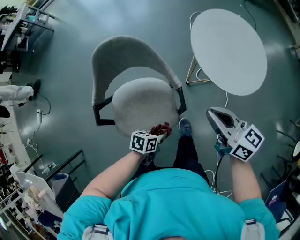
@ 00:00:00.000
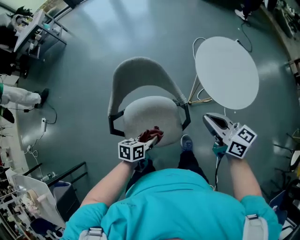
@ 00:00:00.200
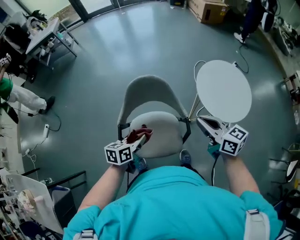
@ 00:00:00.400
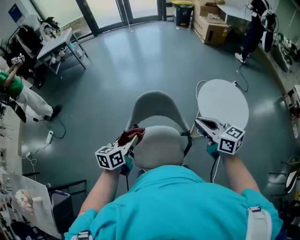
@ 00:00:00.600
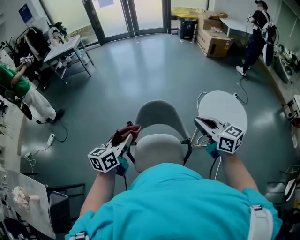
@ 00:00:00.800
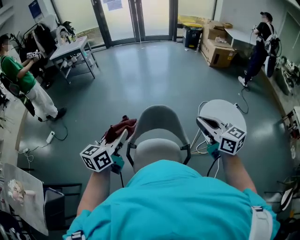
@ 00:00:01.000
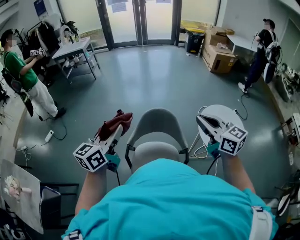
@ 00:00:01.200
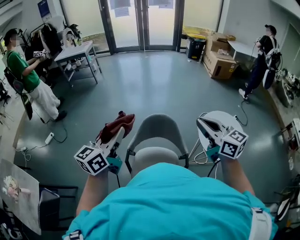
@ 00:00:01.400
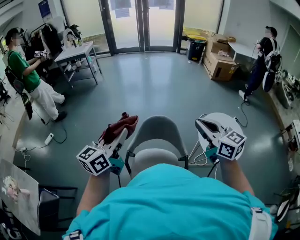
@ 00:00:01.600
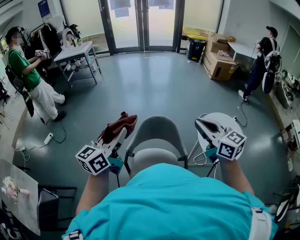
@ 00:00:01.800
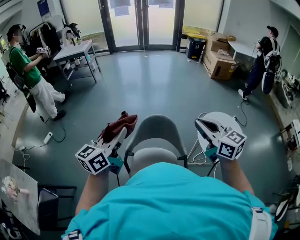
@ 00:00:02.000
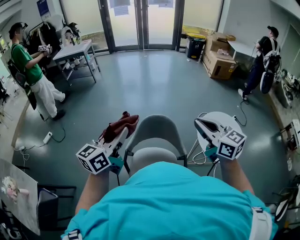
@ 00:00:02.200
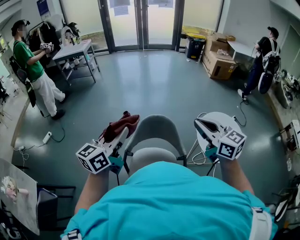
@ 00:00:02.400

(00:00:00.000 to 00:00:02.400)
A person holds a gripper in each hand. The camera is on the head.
00:00:00.000 - 00:00:01.200: The left gripper goes about 60 cm upward, and angles its fingers upward, by approximately 40 degrees; the right gripper is displaced upward by some 30 cm, and turns by roughly 30 degrees.
00:00:01.200 - 00:00:02.400: The grippers stay close to where they were, moving slightly.

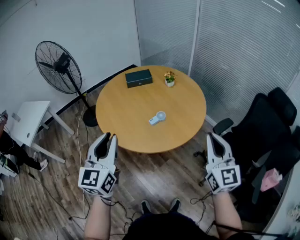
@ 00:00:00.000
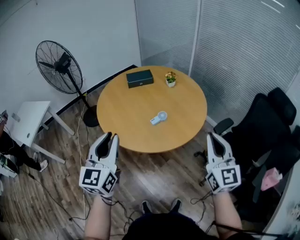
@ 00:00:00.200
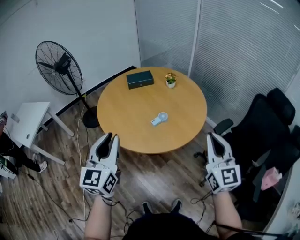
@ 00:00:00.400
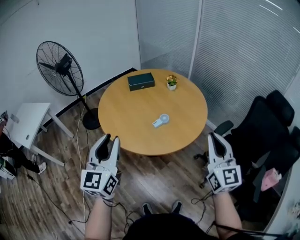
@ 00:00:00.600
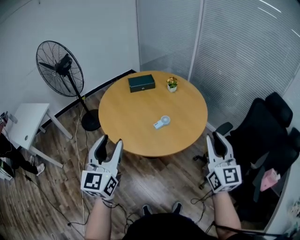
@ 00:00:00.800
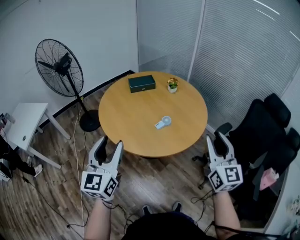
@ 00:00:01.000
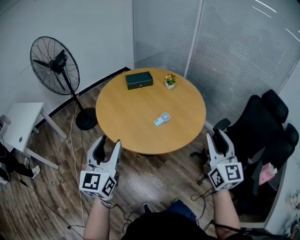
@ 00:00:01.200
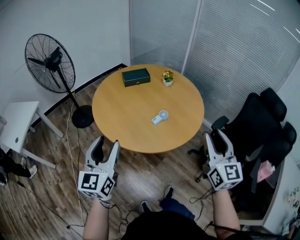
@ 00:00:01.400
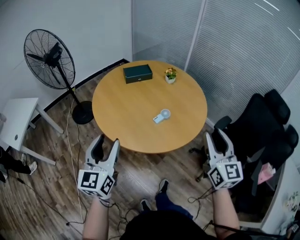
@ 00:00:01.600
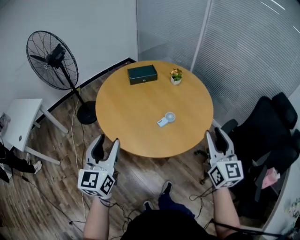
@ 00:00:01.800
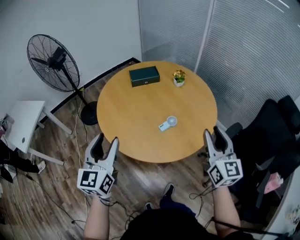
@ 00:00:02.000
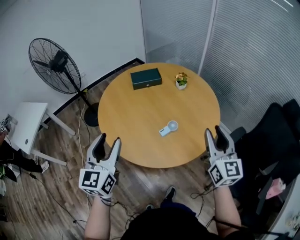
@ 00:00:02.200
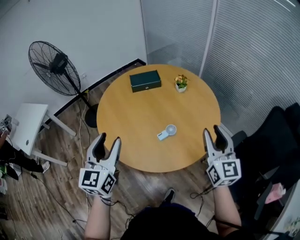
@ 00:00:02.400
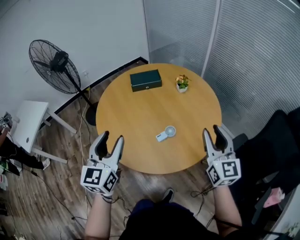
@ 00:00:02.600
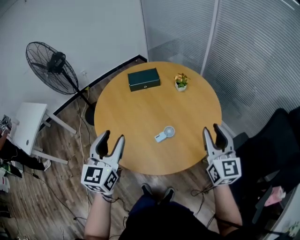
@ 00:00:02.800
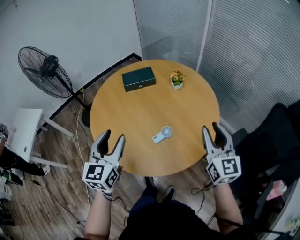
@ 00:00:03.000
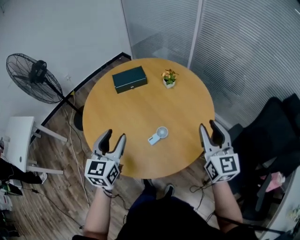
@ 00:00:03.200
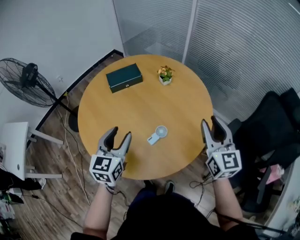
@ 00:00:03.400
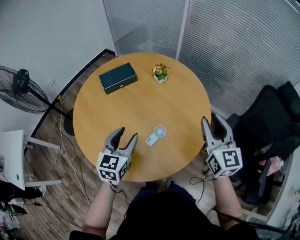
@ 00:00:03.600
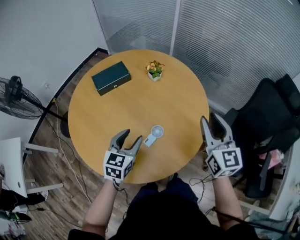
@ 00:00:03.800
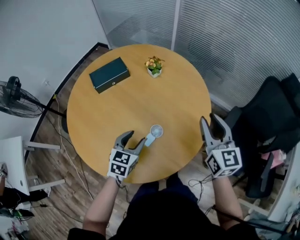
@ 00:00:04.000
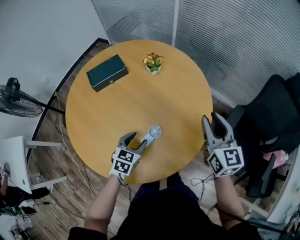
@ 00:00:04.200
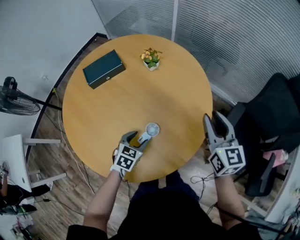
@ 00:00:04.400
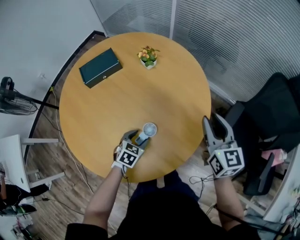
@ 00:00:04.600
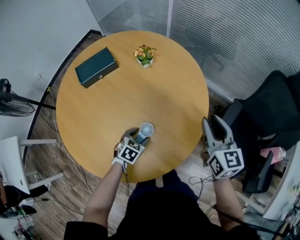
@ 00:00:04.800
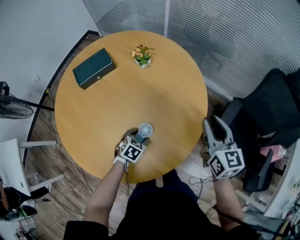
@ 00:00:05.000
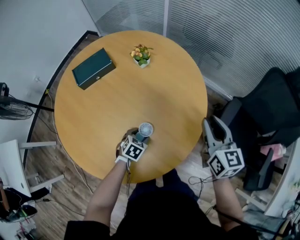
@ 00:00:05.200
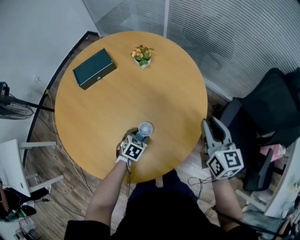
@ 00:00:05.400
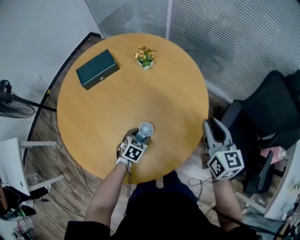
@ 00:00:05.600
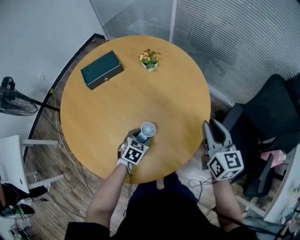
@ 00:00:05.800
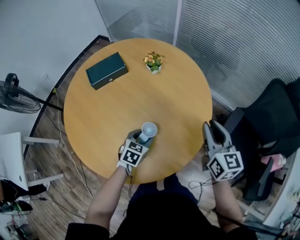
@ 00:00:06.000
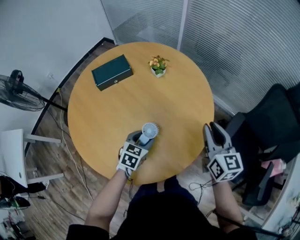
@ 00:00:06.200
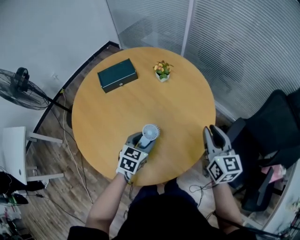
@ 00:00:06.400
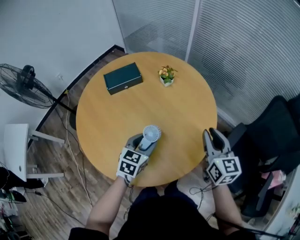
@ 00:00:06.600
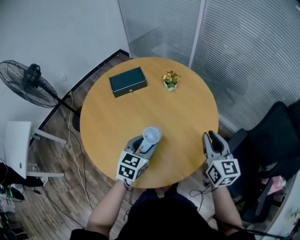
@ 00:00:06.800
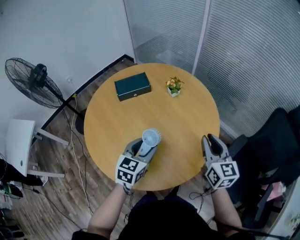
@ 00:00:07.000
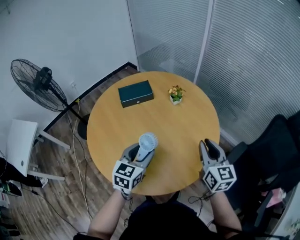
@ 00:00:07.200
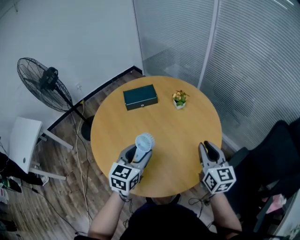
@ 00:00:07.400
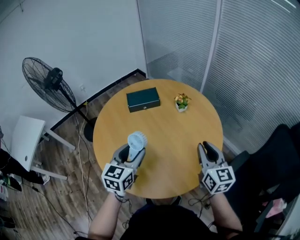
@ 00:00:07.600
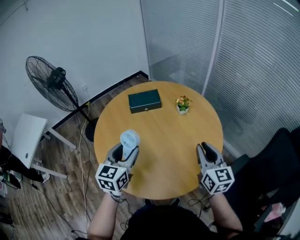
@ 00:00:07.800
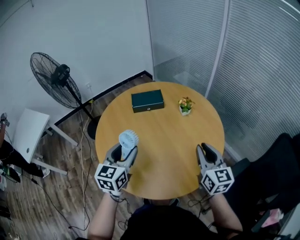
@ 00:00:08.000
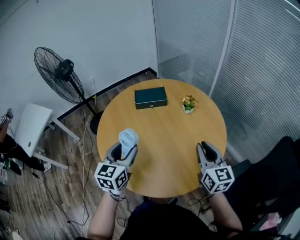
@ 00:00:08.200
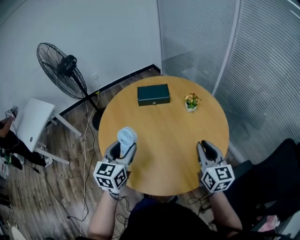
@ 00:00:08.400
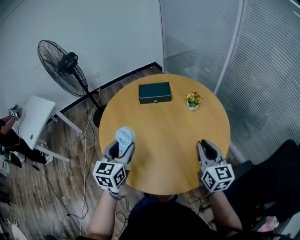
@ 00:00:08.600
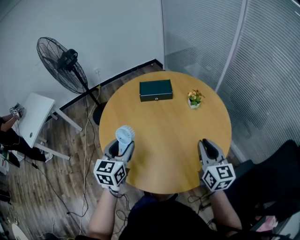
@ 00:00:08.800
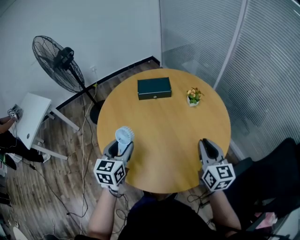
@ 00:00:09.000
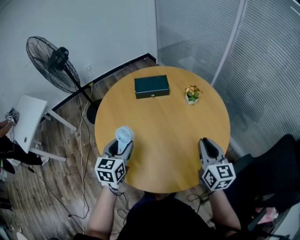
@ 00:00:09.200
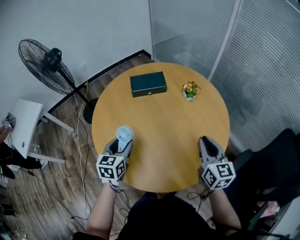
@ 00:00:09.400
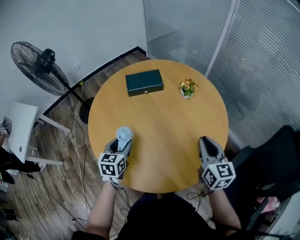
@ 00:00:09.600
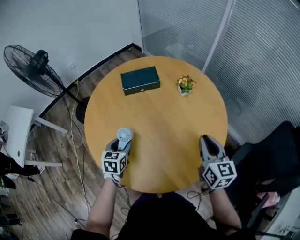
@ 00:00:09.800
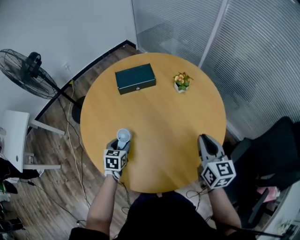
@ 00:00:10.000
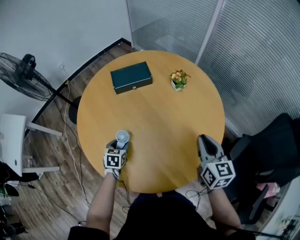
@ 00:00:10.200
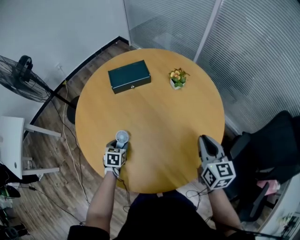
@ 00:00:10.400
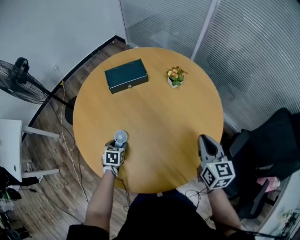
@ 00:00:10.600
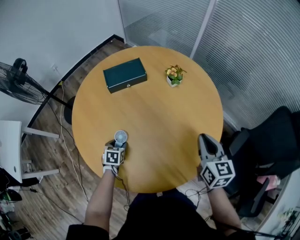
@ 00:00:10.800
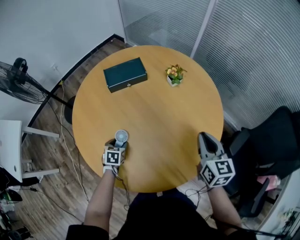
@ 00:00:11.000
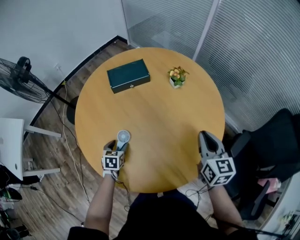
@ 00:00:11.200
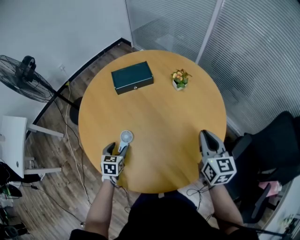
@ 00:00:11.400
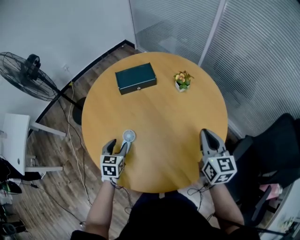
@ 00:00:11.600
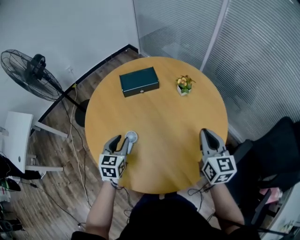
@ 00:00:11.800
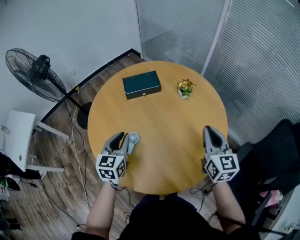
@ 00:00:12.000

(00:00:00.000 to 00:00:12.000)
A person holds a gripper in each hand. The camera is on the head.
00:00:00.000 - 00:00:01.600: The right gripper travels to the left by roughly 10 cm, and opens up, while the left gripper heads to the left and downward, covering roughly 15 cm, and opens up.
00:00:01.600 - 00:00:03.000: The left gripper shifts approximately 25 cm forward and to the right. The right gripper moves forward, about 25 cm.
00:00:03.000 - 00:00:04.400: The left gripper travels downward by approximately 30 cm, and tilts its fingers about 40 degrees downward, while the right gripper ends up some 15 cm from where it was.
00:00:04.400 - 00:00:06.000: The left gripper travels downward and back again, roughly 10 cm each way.
00:00:06.000 - 00:00:07.600: The left gripper shifts some 30 cm upward and to the left, and tilts its fingers roughly 30 degrees upward. Meanwhile the right gripper goes about 10 cm to the left and upward.
00:00:07.600 - 00:00:09.000: The left gripper moves to the left, about 10 cm. Meanwhile the right gripper ends up approximately 5 cm from where it was.
00:00:09.000 - 00:00:10.400: The left gripper shifts roughly 30 cm downward, and points its fingers roughly 30 degrees further downward. Meanwhile the right gripper travels downward by roughly 5 cm.
00:00:10.400 - 00:00:12.000: The right gripper travels upward by some 10 cm; the left gripper travels upward by roughly 25 cm, points its fingers approximately 30 degrees further upward, and closes.

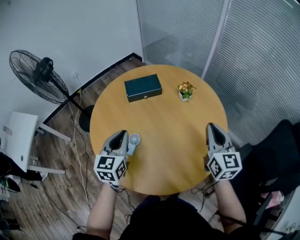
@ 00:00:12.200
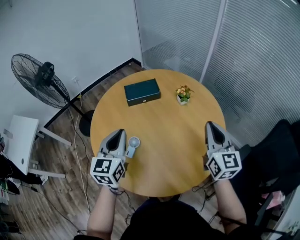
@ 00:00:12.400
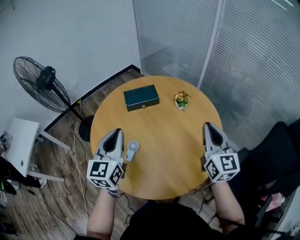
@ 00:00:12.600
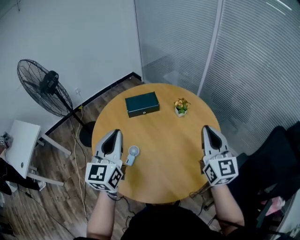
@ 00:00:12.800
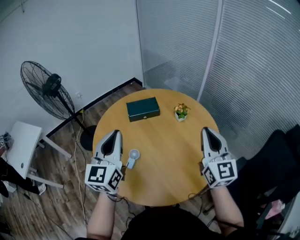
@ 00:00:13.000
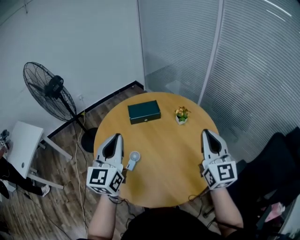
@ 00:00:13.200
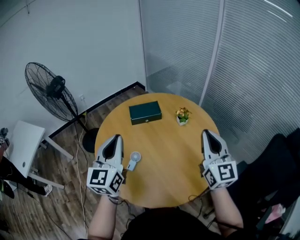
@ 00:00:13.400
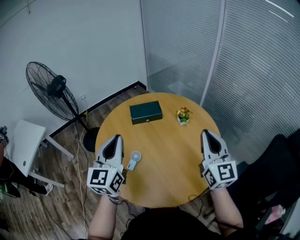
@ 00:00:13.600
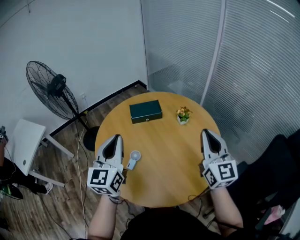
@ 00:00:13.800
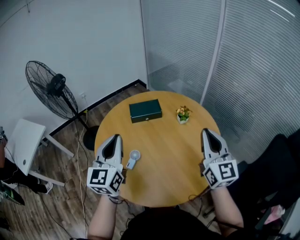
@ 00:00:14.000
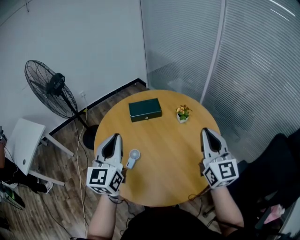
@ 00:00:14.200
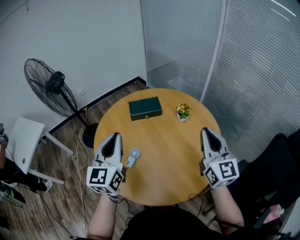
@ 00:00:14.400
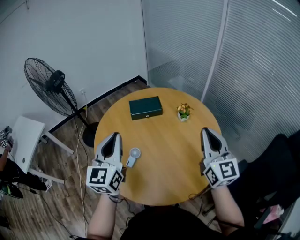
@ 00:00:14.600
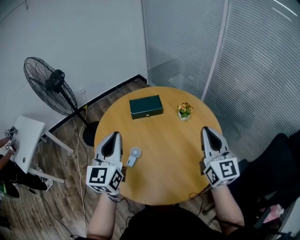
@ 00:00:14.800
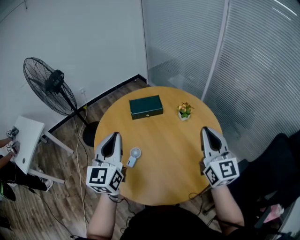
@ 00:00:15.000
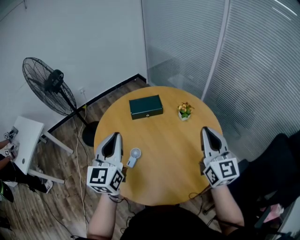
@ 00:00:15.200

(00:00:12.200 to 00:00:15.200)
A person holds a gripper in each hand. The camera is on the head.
00:00:12.200 - 00:00:13.800: The two grippers go roughly 15 cm upward. The left gripper swivels about 20 degrees.
00:00:13.800 - 00:00:15.200: There are only small adjustments of the grippers.

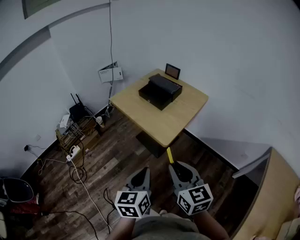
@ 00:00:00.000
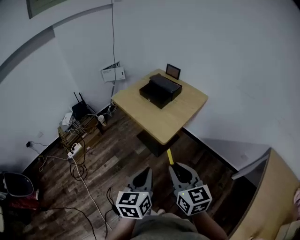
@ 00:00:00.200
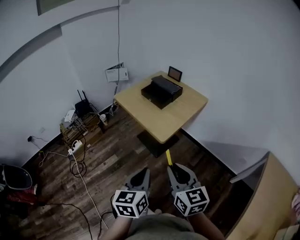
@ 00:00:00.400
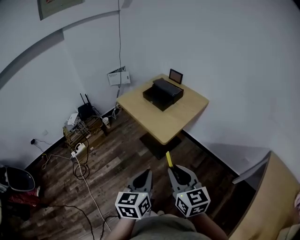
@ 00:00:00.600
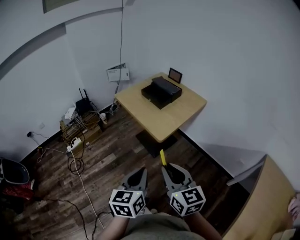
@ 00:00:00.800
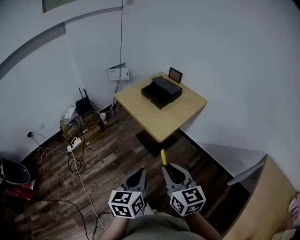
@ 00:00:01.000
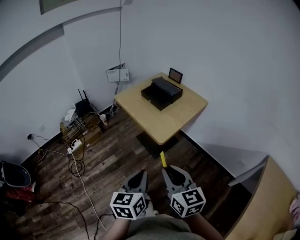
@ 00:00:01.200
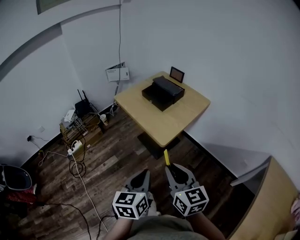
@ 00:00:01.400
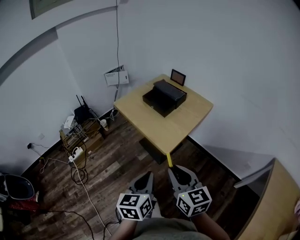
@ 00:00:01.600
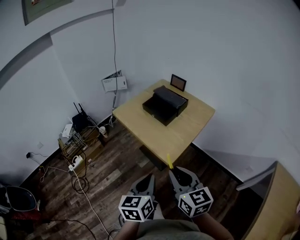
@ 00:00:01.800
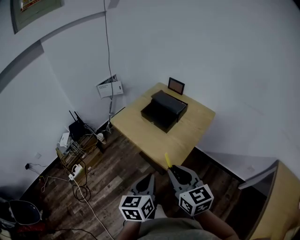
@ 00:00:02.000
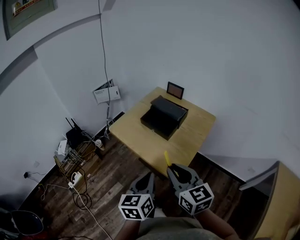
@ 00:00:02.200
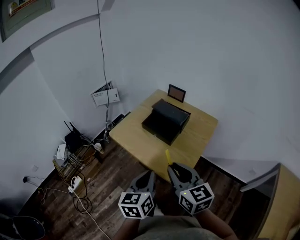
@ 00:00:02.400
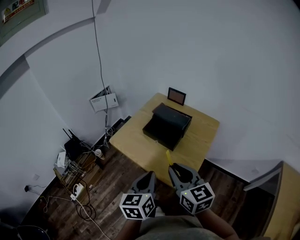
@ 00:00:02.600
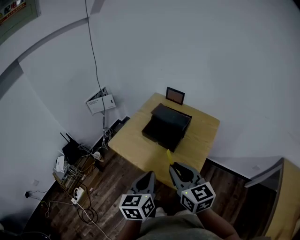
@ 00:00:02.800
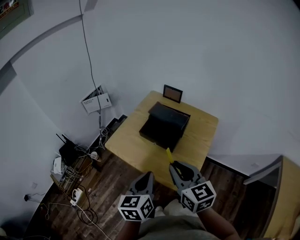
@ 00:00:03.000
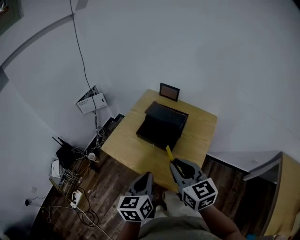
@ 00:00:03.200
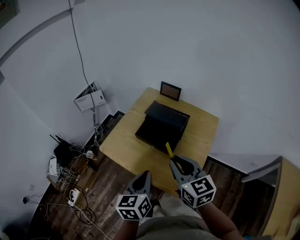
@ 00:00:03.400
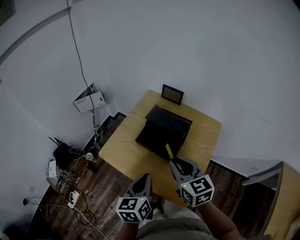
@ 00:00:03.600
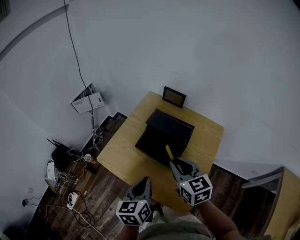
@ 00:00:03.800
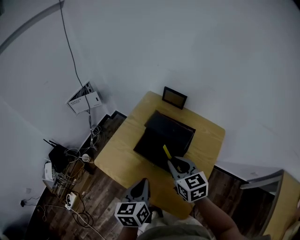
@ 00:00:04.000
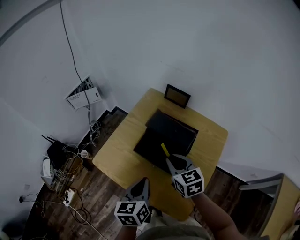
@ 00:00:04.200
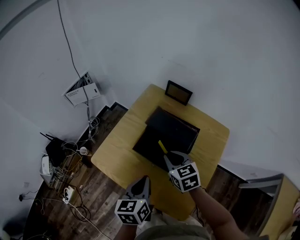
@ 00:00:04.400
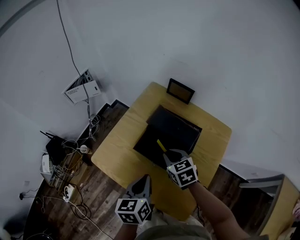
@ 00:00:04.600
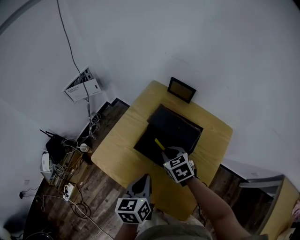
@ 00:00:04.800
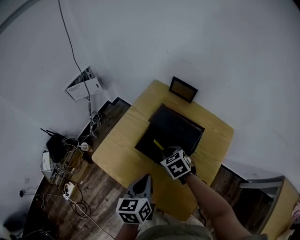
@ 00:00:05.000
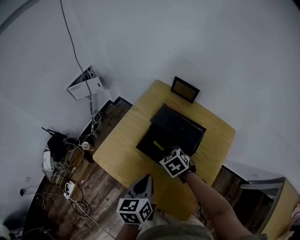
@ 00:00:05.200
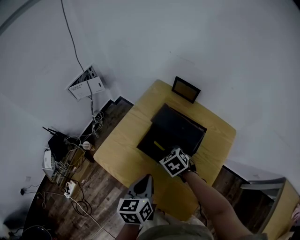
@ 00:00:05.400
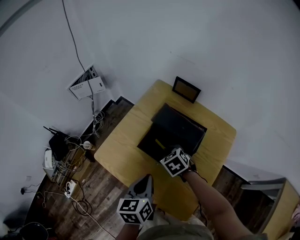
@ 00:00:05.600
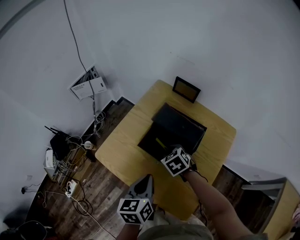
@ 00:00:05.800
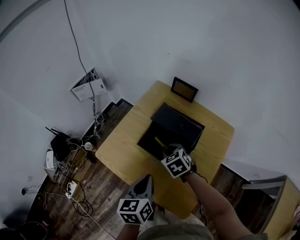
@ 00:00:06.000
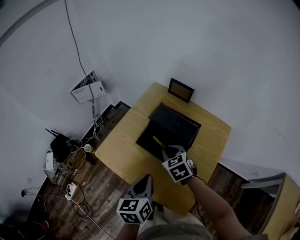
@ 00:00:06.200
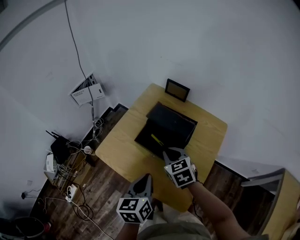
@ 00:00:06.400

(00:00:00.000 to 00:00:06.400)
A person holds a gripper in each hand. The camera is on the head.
00:00:00.000 - 00:00:01.600: The left gripper moves some 10 cm backward and comes back, while the right gripper moves some 10 cm backward and comes back.
00:00:01.600 - 00:00:03.200: The grippers both shift forward by about 30 cm.
00:00:03.200 - 00:00:04.800: The right gripper travels forward and downward by roughly 30 cm, and tips its fingers downward by some 30 degrees, while the left gripper travels forward and downward by some 20 cm.
00:00:04.800 - 00:00:06.400: The right gripper shifts about 10 cm upward and backward, while the left gripper moves backward, about 5 cm.
